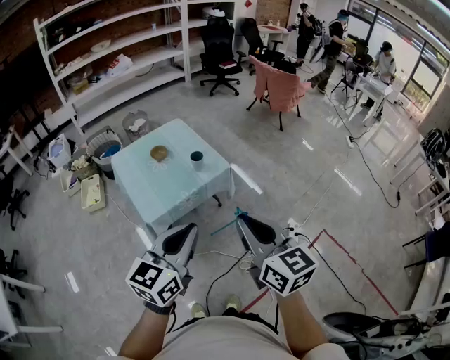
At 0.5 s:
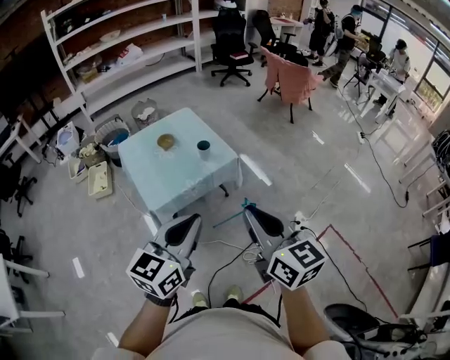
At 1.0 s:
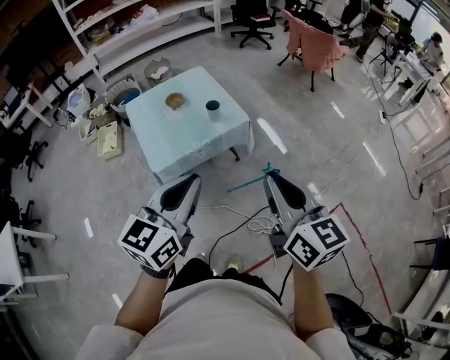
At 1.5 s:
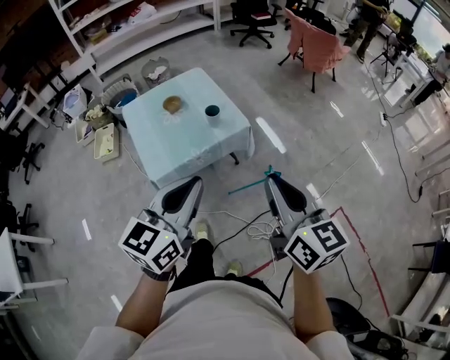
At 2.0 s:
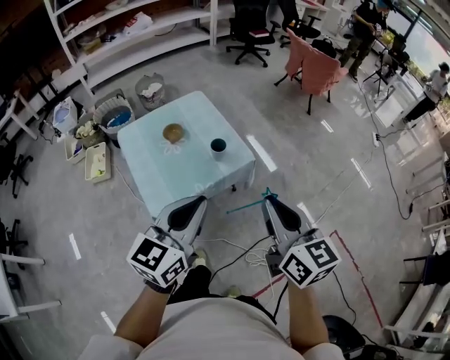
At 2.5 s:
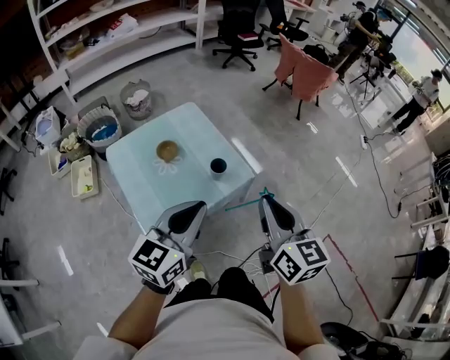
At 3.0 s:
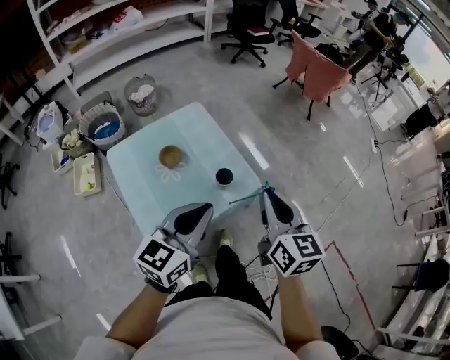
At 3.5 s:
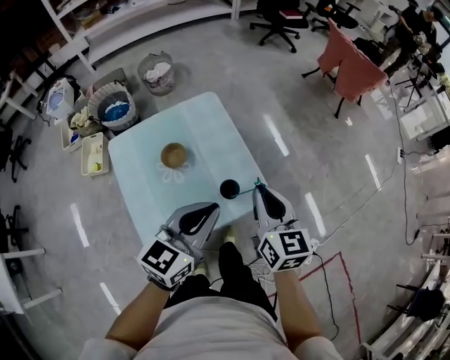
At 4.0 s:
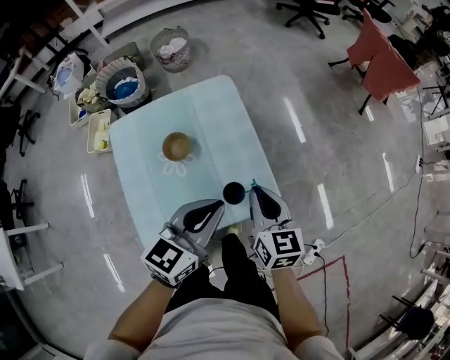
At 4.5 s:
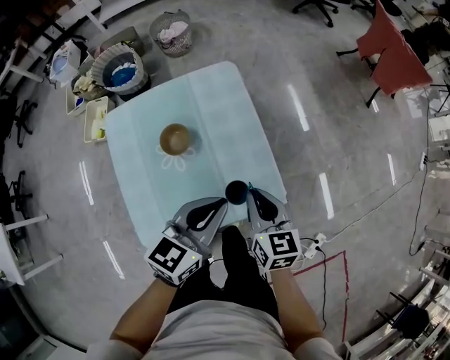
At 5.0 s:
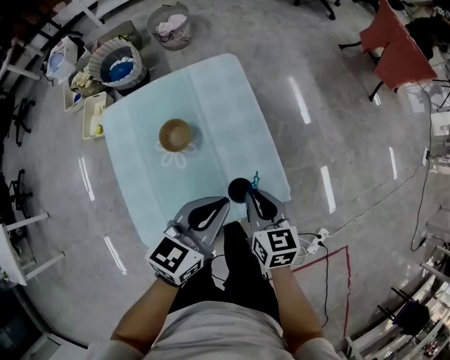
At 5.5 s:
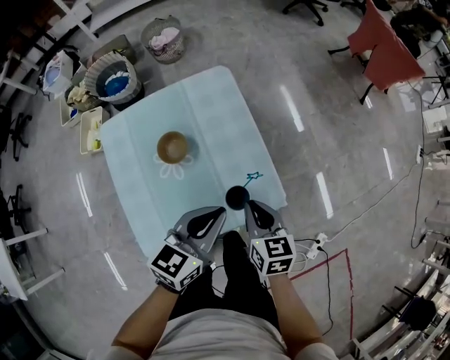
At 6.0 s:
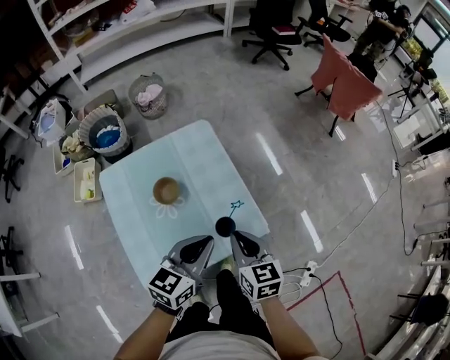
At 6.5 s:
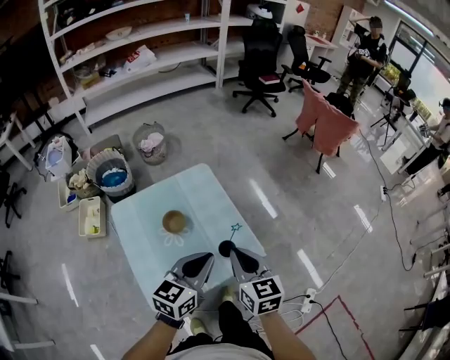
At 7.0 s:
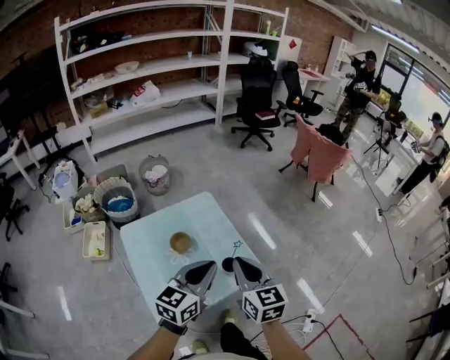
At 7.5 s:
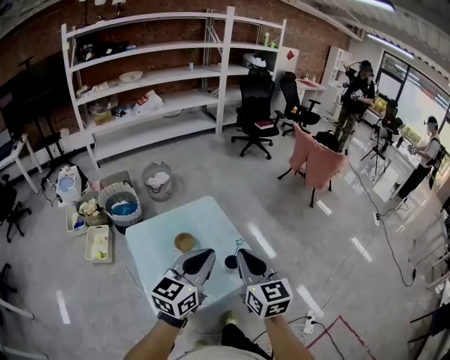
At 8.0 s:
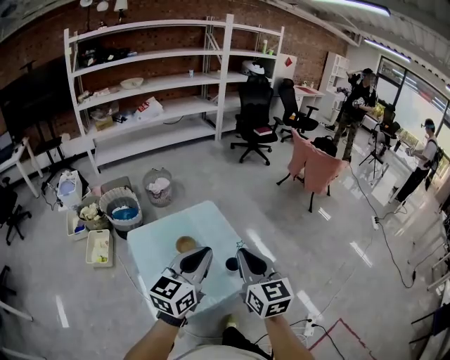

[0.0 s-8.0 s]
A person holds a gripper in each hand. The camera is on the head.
0.0 to 2.0 s: The grippers both shift forward by about 20 cm.
2.0 to 4.0 s: The two grippers go about 40 cm forward and downward.
4.0 to 6.0 s: Both grippers travel together downward and forward, about 60 cm.
6.0 to 8.0 s: Both grippers move upward, approximately 25 cm. The right gripper changes its angle by roughly 30 degrees. Meanwhile the left gripper rotates roughly 20 degrees.

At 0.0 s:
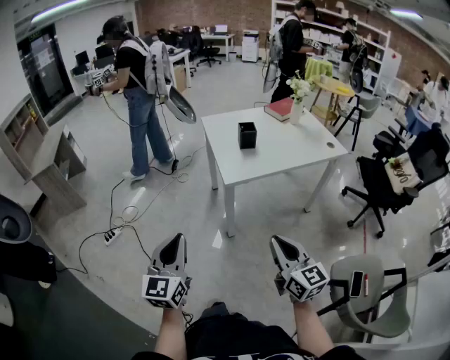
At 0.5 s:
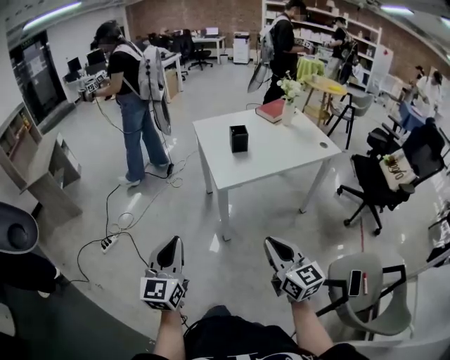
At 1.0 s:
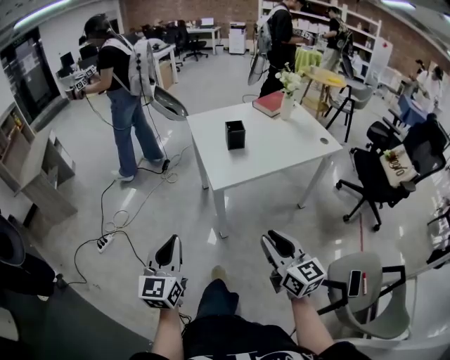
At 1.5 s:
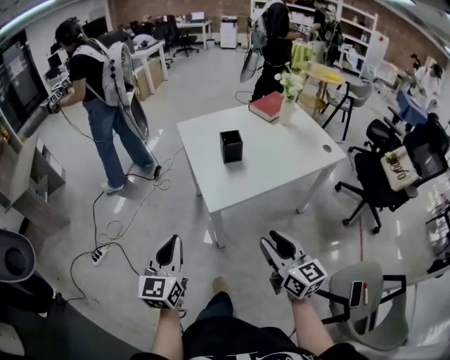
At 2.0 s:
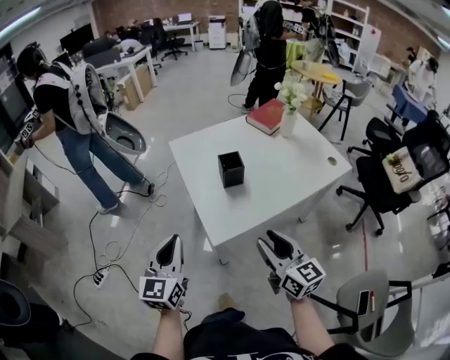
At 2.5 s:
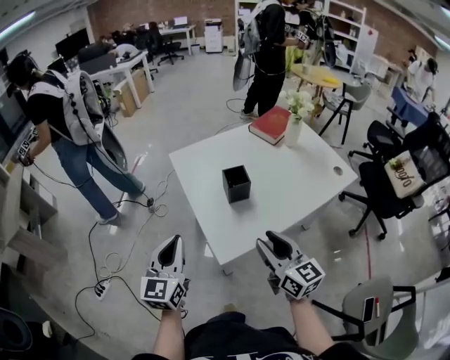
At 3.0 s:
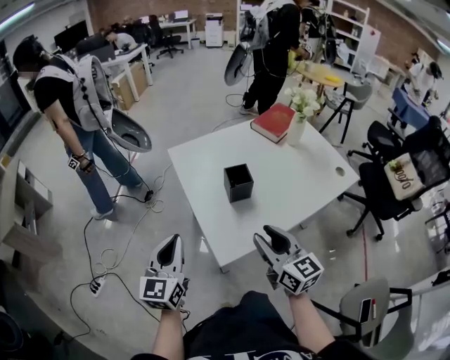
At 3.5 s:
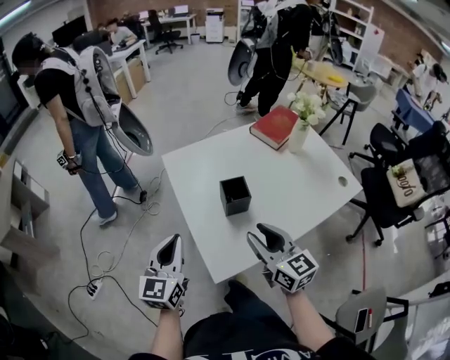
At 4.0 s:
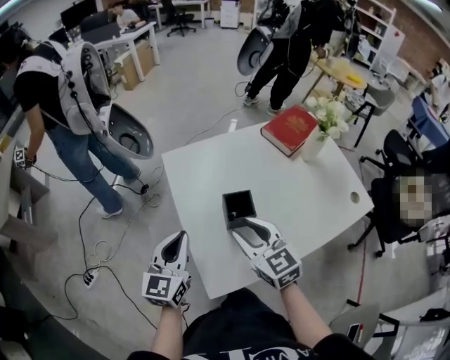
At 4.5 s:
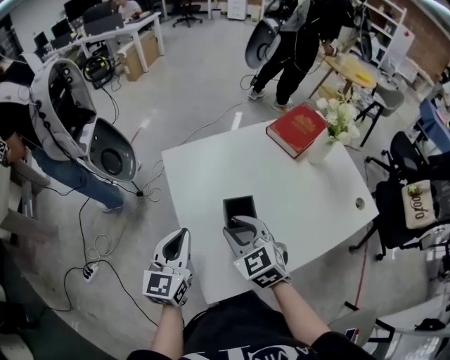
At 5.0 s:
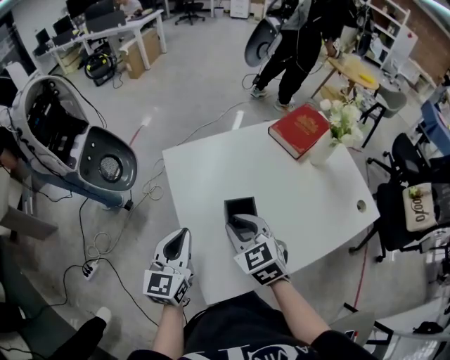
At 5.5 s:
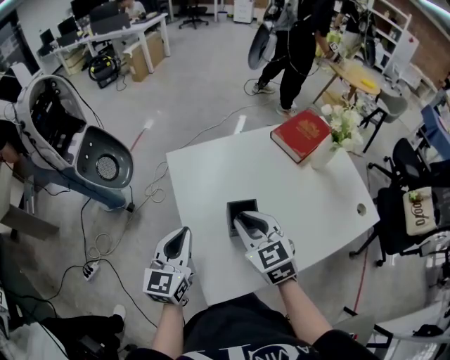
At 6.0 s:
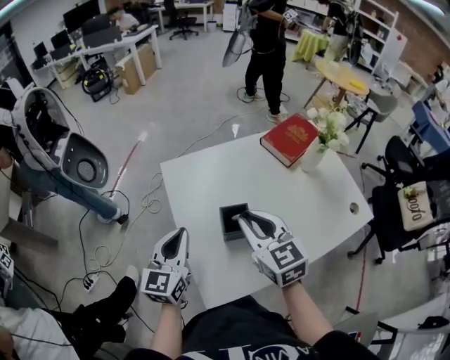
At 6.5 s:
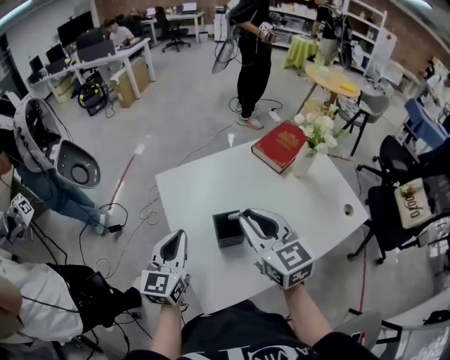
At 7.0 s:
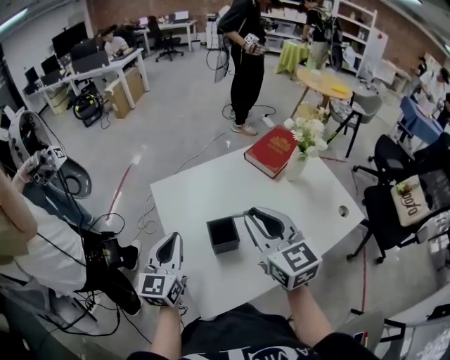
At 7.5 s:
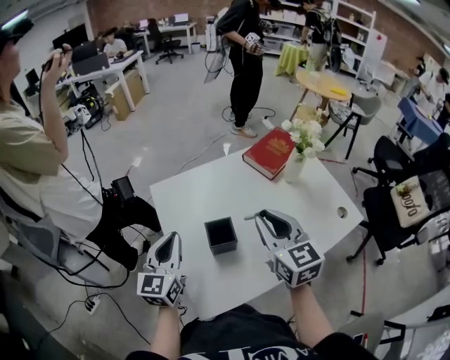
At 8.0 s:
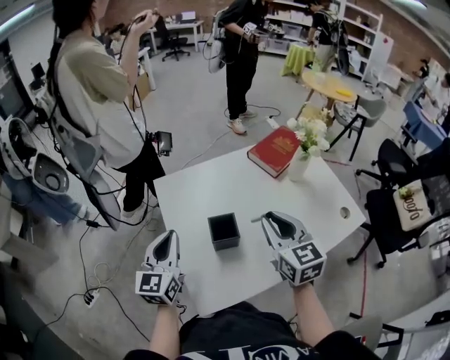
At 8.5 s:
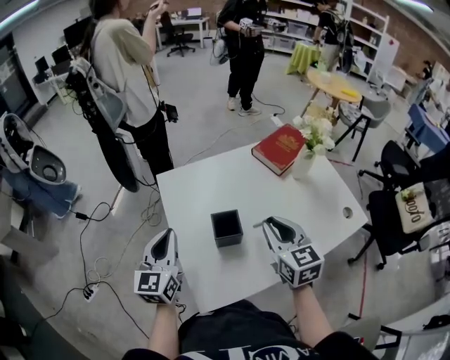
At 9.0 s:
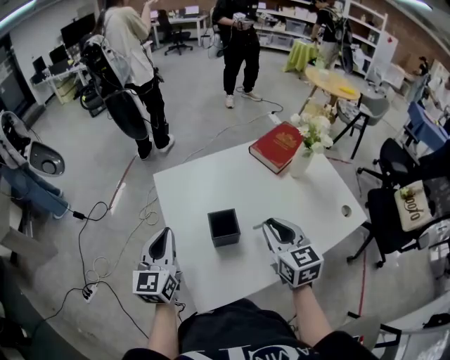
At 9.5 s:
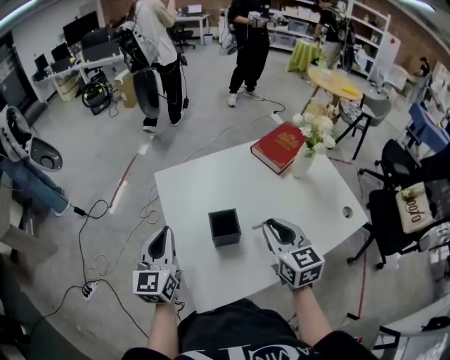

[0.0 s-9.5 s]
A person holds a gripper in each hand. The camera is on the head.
0.0 to 2.0 s: Both grippers move forward, approximately 30 cm. The right gripper opens its fingers.
2.0 to 4.0 s: The two grippers go some 25 cm forward. The right gripper rotates some 30 degrees.
4.0 to 5.5 s: The right gripper shifts some 5 cm forward.
5.5 to 7.5 s: The right gripper shifts about 15 cm to the right and upward, and swivels some 20 degrees; the left gripper moves roughly 5 cm.
7.5 to 9.5 s: The right gripper heads downward, covering roughly 5 cm.

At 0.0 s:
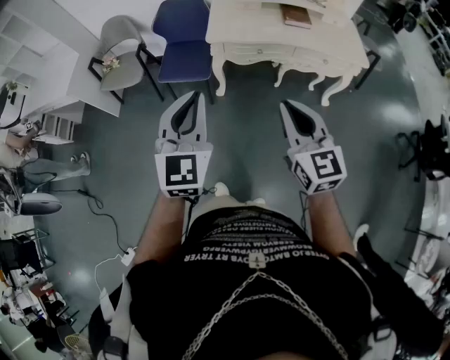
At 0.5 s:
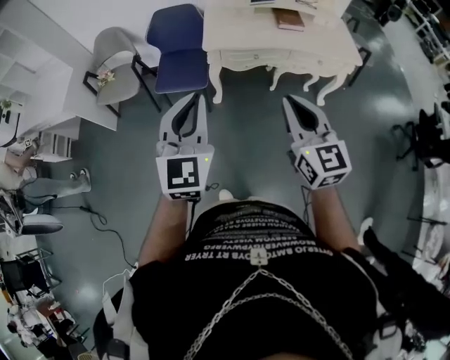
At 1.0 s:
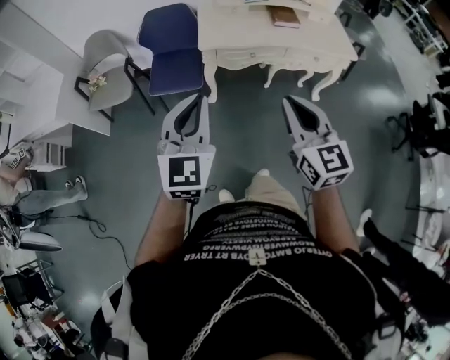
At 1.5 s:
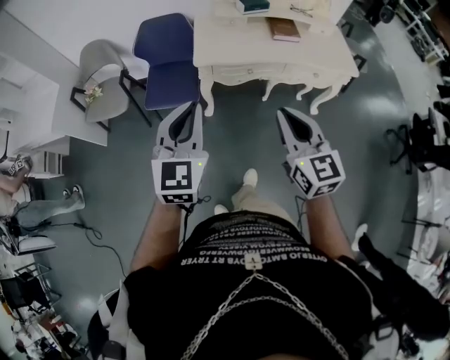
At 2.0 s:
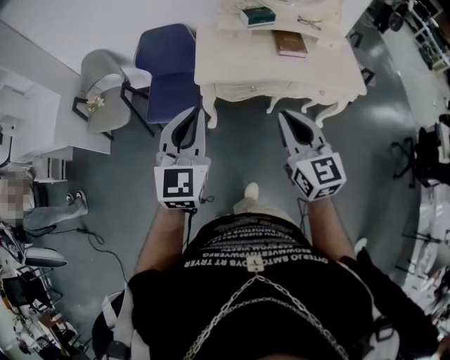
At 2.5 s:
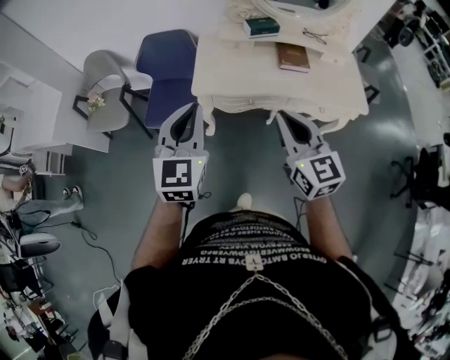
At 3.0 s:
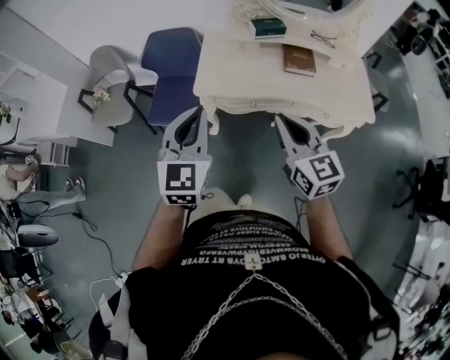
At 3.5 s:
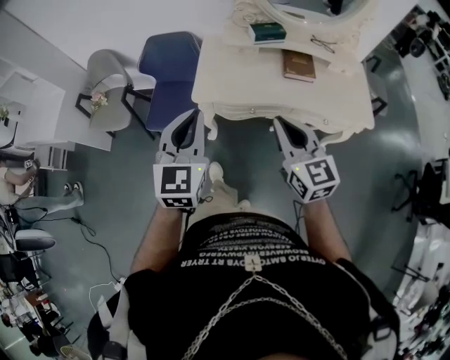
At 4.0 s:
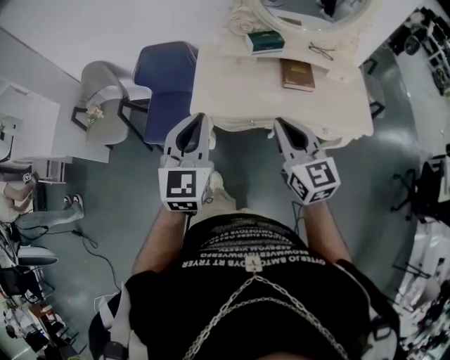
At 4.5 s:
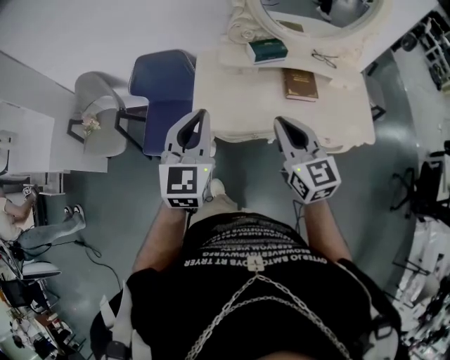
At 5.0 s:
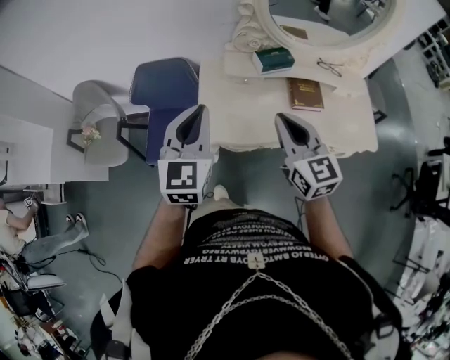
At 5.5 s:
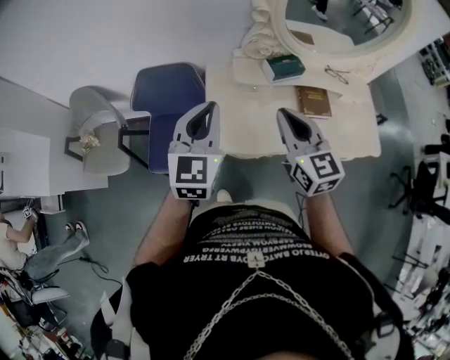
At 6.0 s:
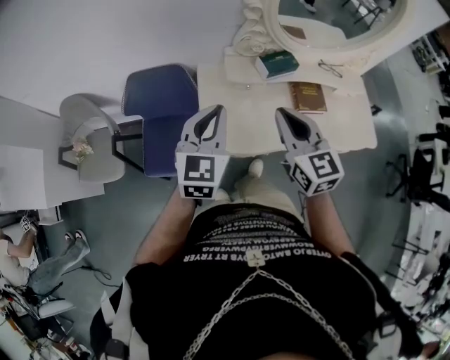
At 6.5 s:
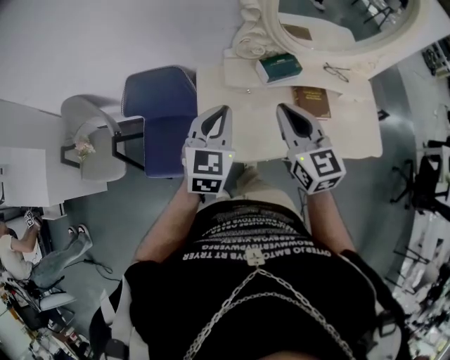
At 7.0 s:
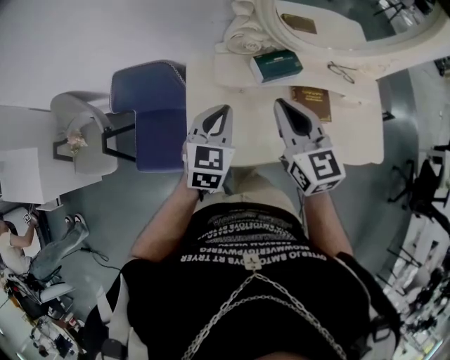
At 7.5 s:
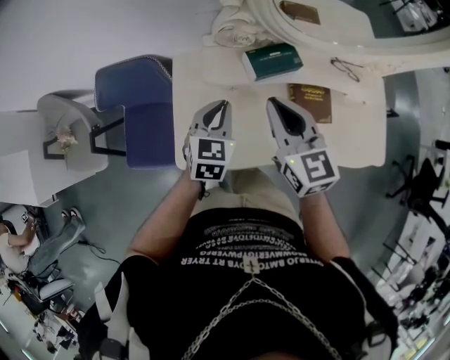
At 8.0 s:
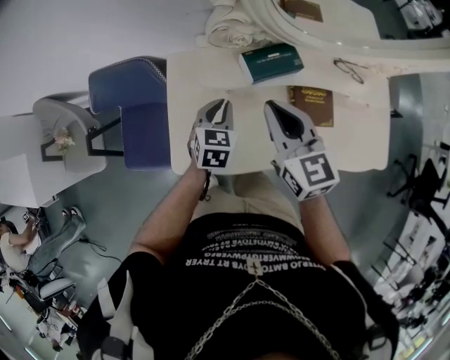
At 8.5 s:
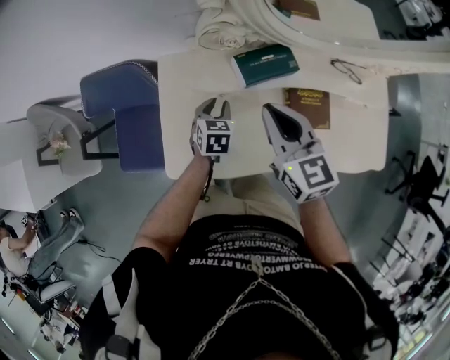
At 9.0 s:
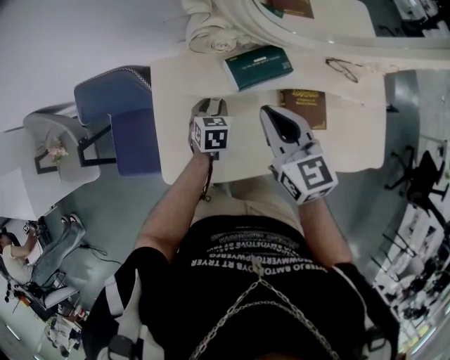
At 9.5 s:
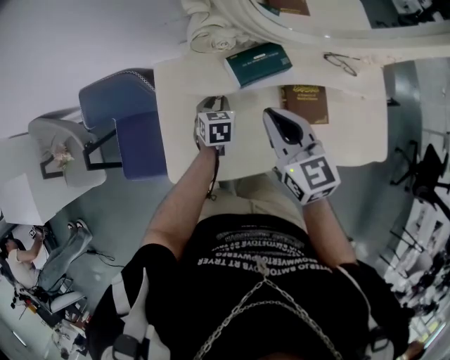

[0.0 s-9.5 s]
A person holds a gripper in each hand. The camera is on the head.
0.0 to 2.0 s: Both grippers move forward, about 20 cm.
2.0 to 4.0 s: The right gripper shifts roughly 15 cm forward; the left gripper moves forward and to the right, roughly 15 cm.
4.0 to 5.5 s: The two grippers go about 20 cm forward.
5.5 to 7.5 s: The left gripper shifts some 30 cm downward, forward and to the right, and turns by about 20 degrees. The right gripper moves forward, downward and to the right, approximately 20 cm.
7.5 to 9.5 s: The left gripper travels downward by about 20 cm, and rotates some 20 degrees, while the right gripper moves some 5 cm.
